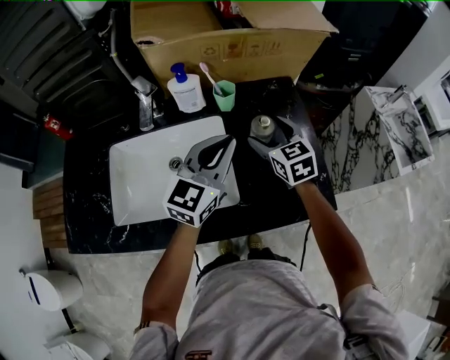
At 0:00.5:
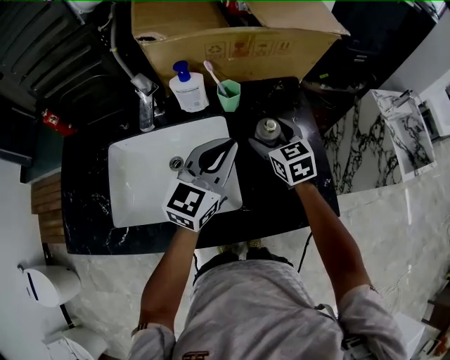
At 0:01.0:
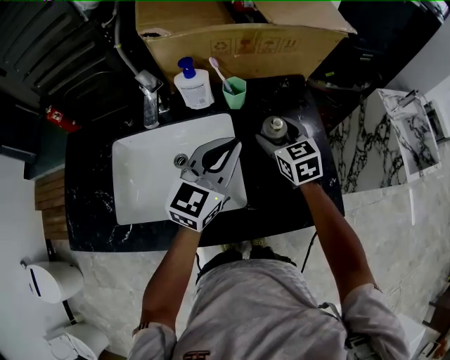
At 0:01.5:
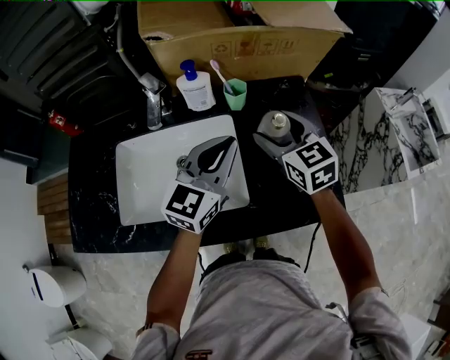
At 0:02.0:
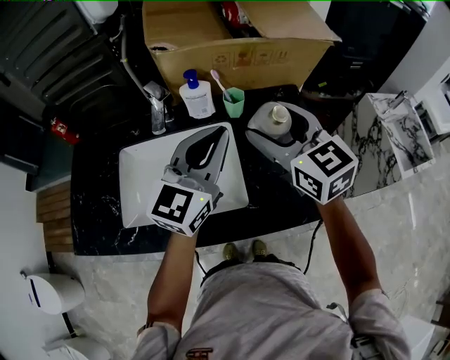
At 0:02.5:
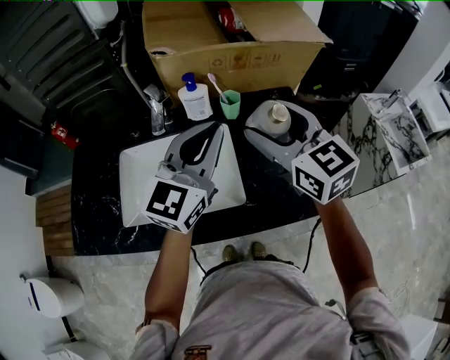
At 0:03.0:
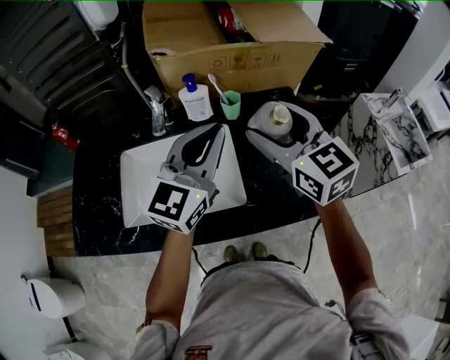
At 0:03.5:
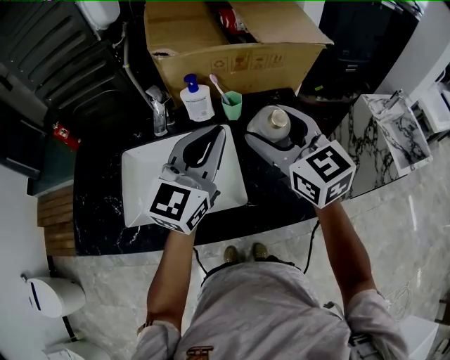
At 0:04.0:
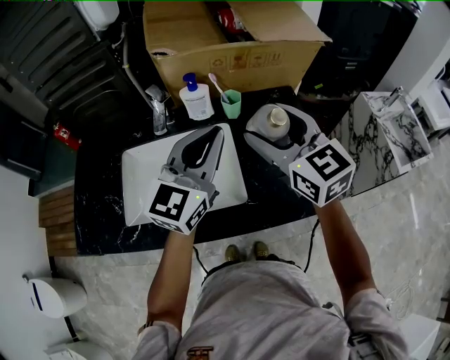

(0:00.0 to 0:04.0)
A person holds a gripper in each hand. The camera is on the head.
0:00.0 - 0:02.0: The left gripper goes roughly 10 cm upward; the right gripper moves upward, roughly 20 cm.
0:02.0 - 0:04.0: There are only small adjustments of the grippers.

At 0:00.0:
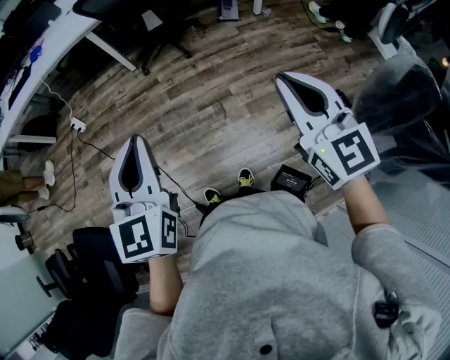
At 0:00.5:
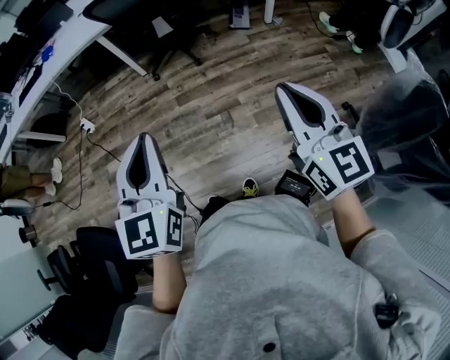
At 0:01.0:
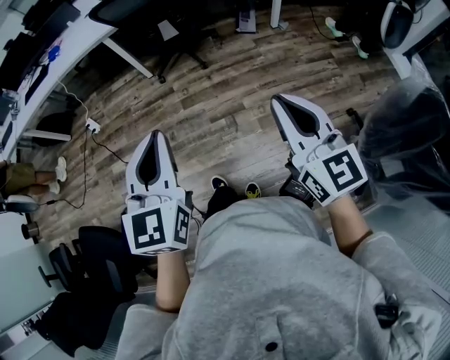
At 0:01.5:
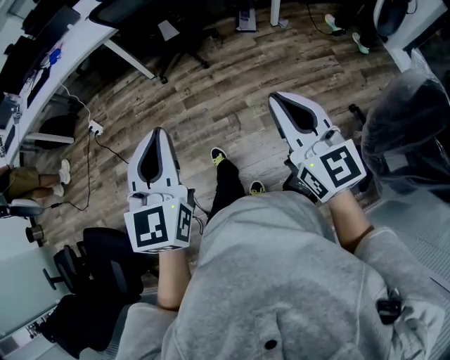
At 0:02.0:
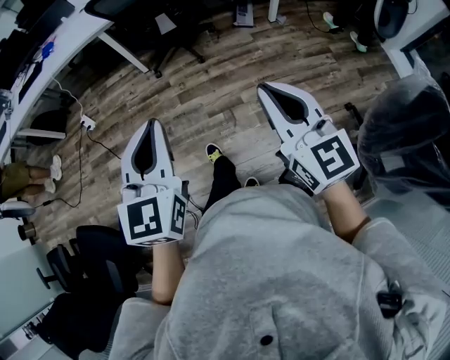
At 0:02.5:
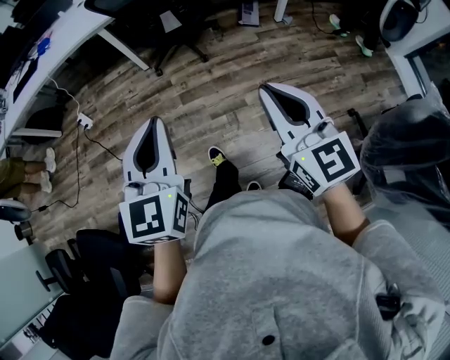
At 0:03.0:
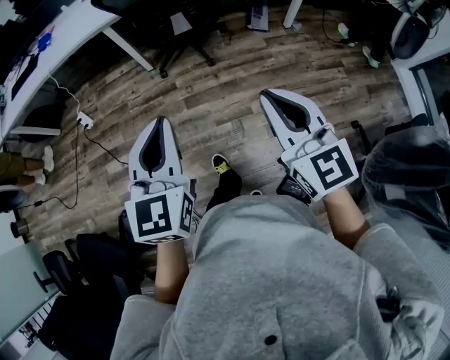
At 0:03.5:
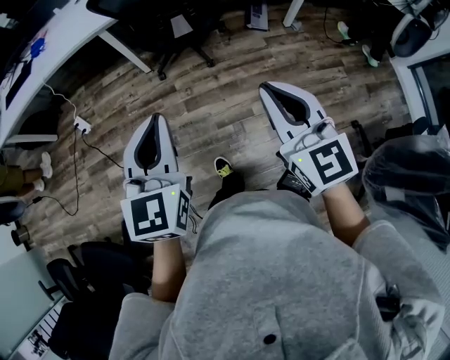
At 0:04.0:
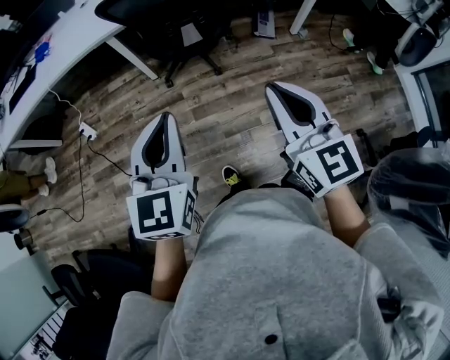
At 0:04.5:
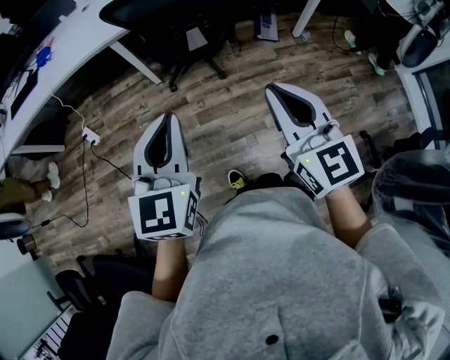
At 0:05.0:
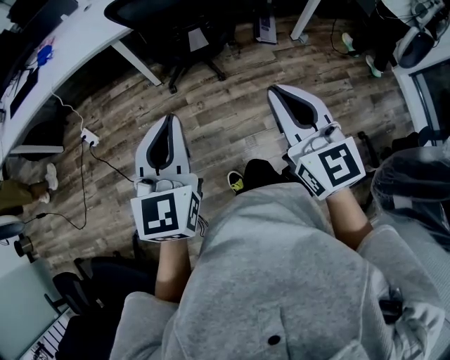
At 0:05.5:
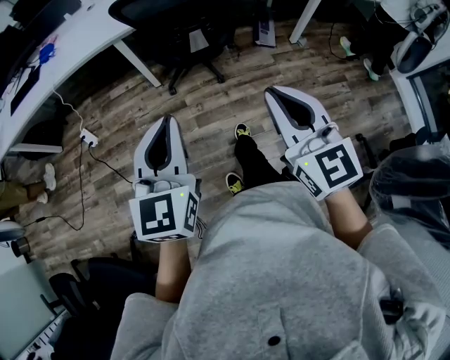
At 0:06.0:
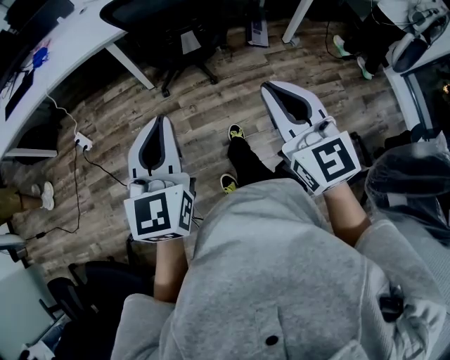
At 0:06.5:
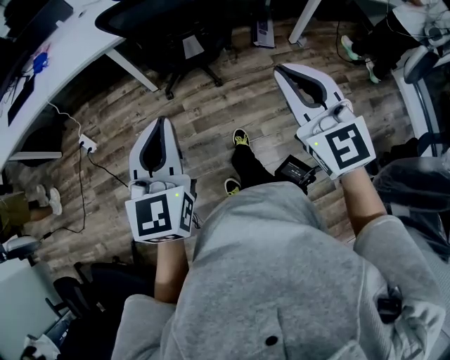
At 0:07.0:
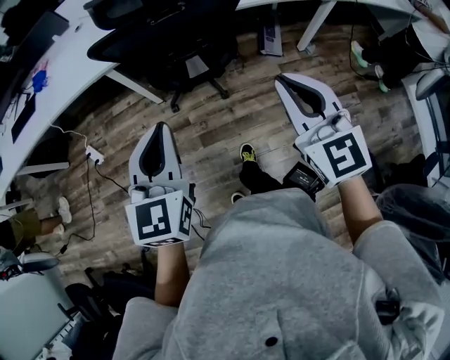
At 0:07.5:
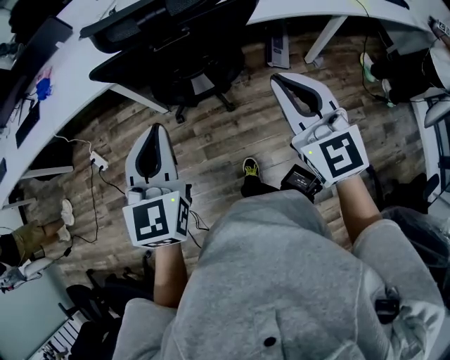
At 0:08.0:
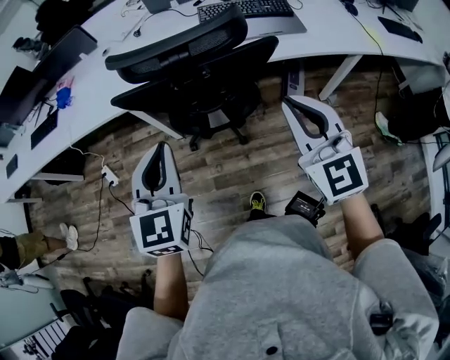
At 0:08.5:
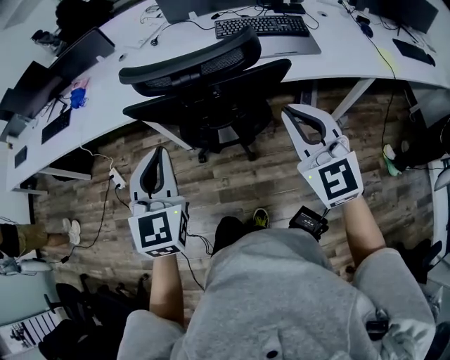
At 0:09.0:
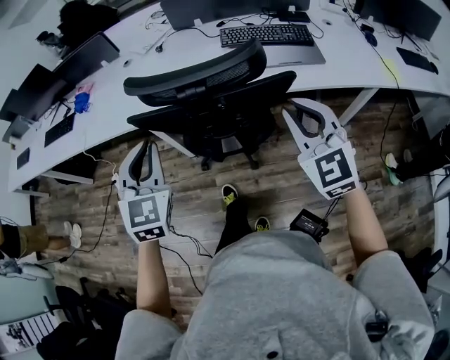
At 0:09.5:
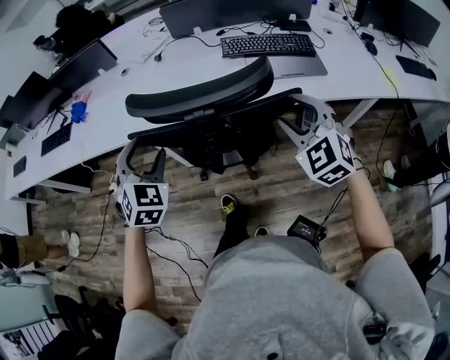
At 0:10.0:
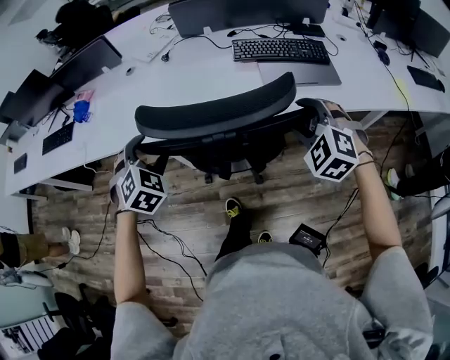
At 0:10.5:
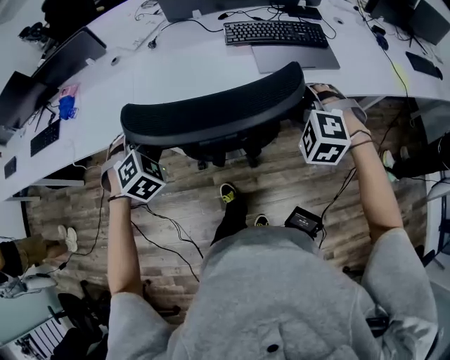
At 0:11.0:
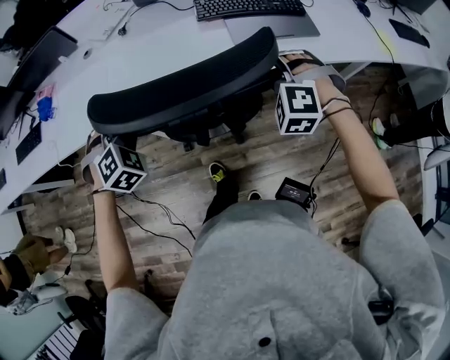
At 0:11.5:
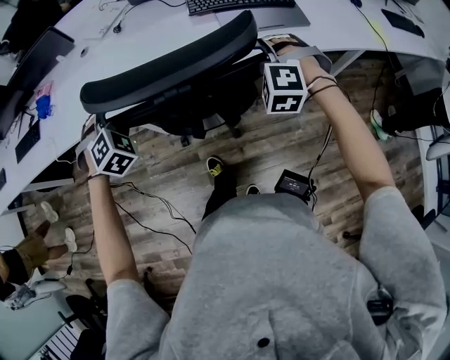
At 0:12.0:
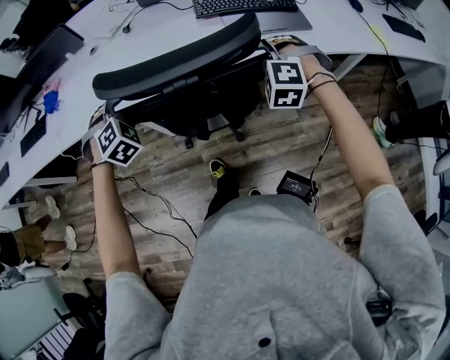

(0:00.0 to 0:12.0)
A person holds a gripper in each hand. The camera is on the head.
0:00.0 - 0:02.0: The right gripper ends up roughly 5 cm from where it was, while the left gripper ends up roughly 5 cm from where it was.
0:02.0 - 0:04.0: Both grippers move forward, some 25 cm.
0:04.0 - 0:06.0: There are only small adjustments of the grippers.
0:06.0 - 0:08.0: The two grippers go approximately 30 cm forward.
0:08.0 - 0:10.0: The grippers both shift forward and downward by some 25 cm. The right gripper tilts its fingers about 30 degrees downward, and opens; the left gripper changes its angle by about 50 degrees, and opens.
0:10.0 - 0:12.0: The right gripper moves about 5 cm, changes its angle by approximately 20 degrees, and closes up, while the left gripper closes up.

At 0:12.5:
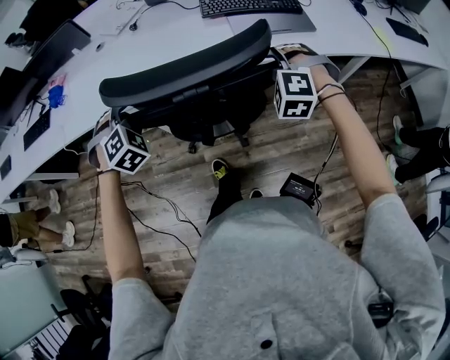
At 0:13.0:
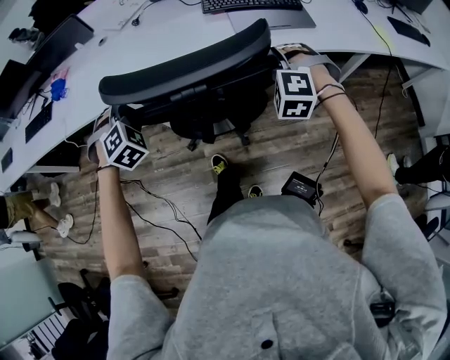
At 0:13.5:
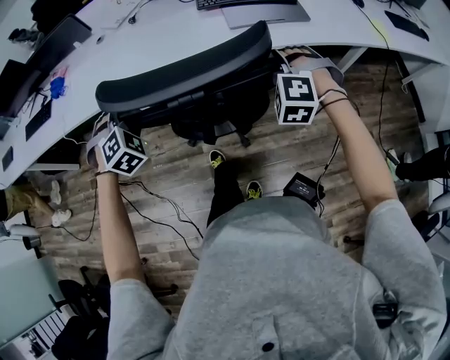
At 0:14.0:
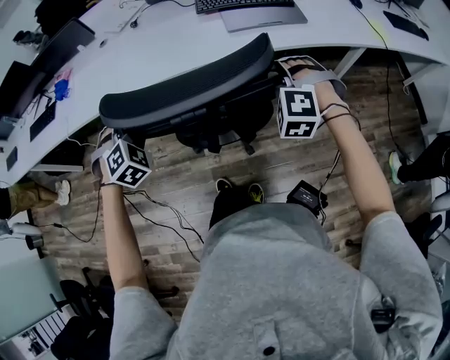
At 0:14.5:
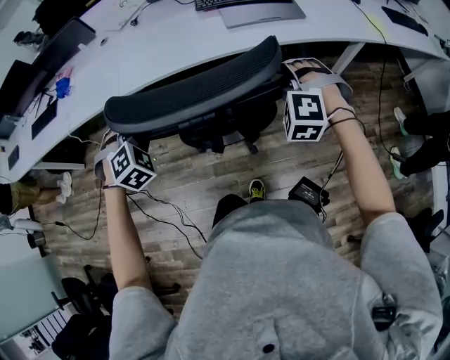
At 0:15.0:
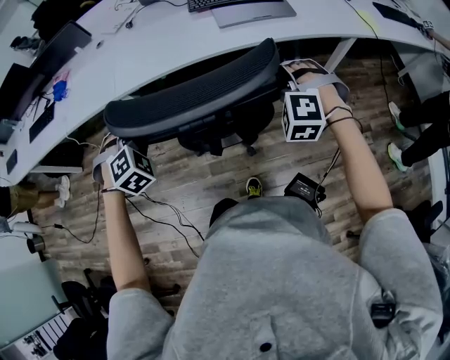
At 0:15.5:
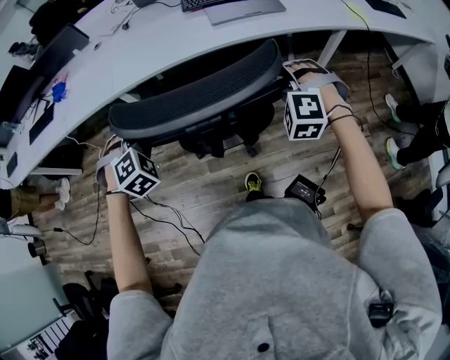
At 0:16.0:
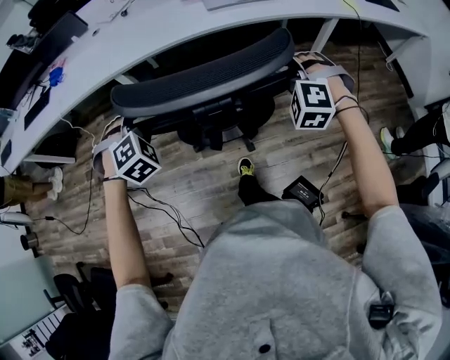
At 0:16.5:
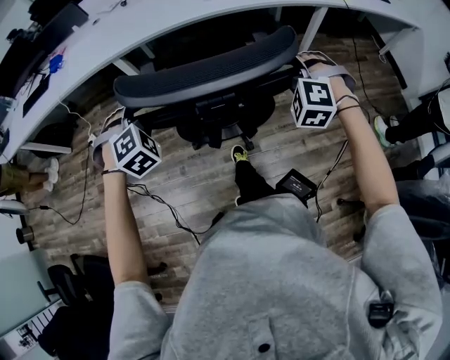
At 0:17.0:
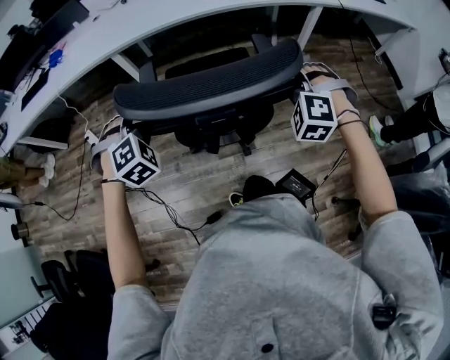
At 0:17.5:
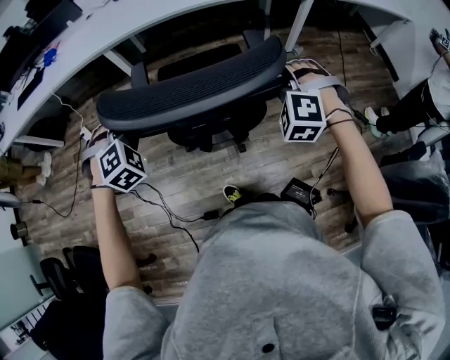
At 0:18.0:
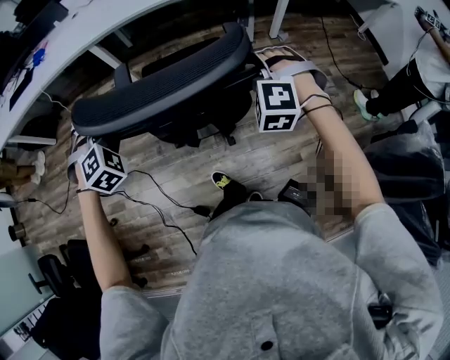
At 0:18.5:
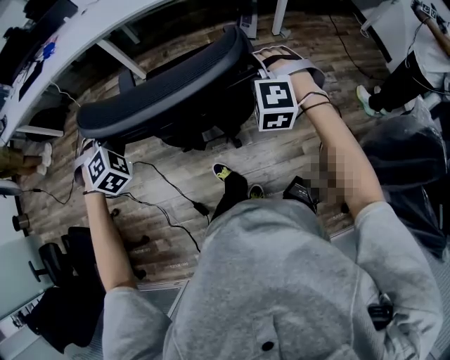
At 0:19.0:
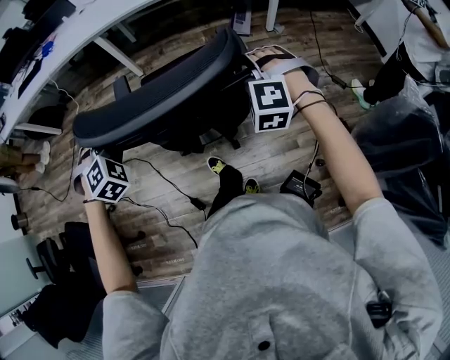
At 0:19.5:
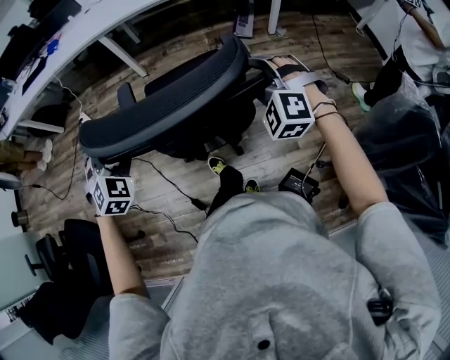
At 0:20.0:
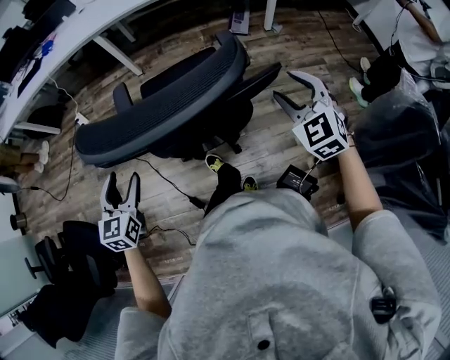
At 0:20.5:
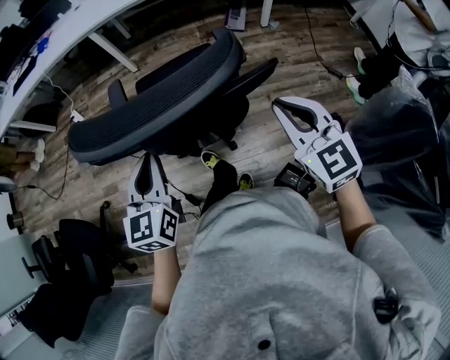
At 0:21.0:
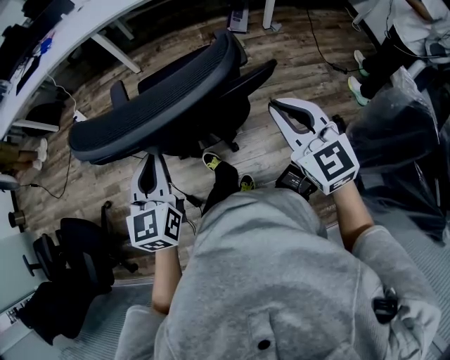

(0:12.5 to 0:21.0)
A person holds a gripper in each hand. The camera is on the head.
0:12.5 - 0:14.5: The two grippers go some 10 cm backward.
0:14.5 - 0:16.5: Both grippers travel together backward, some 25 cm.
0:16.5 - 0:19.0: Both grippers move backward, approximately 30 cm.
0:19.0 - 0:21.0: The left gripper shifts some 20 cm backward and to the right, rolls counterclockwise, seen from behind, by some 70 degrees, and closes. The right gripper moves backward and upward, some 15 cm, rolls clockwise, seen from behind, by some 60 degrees, and closes.

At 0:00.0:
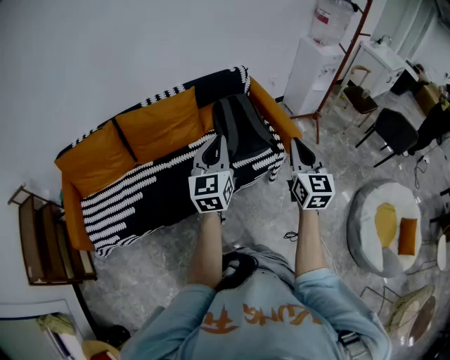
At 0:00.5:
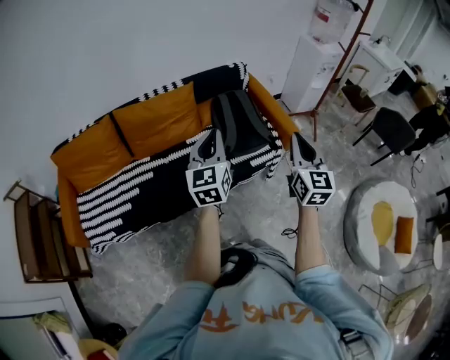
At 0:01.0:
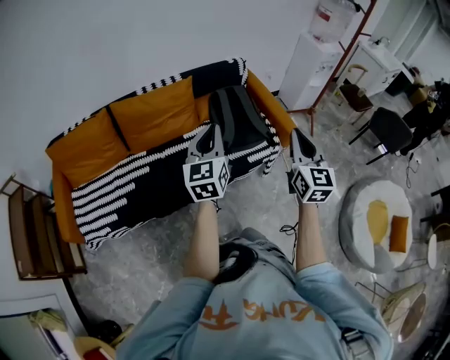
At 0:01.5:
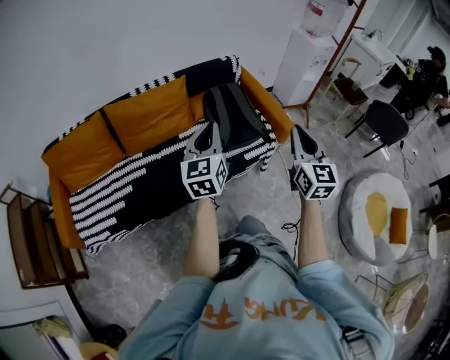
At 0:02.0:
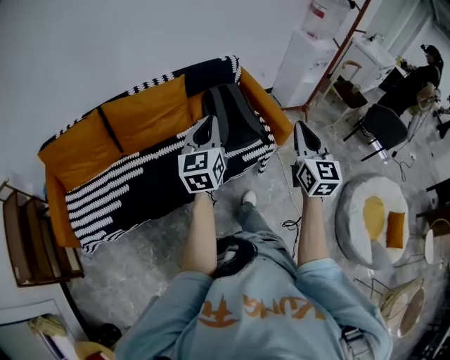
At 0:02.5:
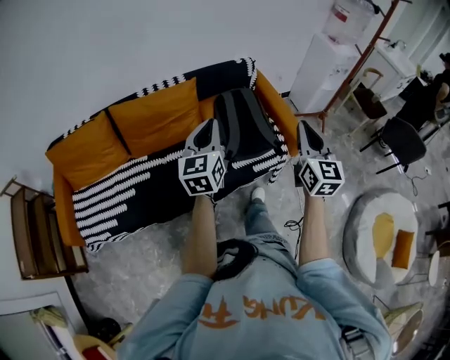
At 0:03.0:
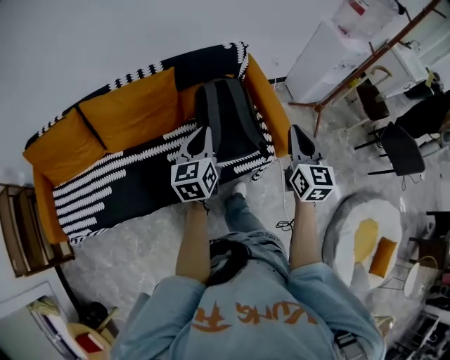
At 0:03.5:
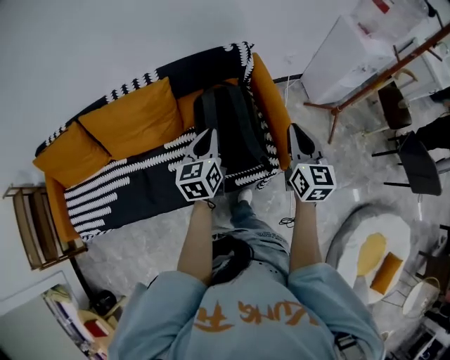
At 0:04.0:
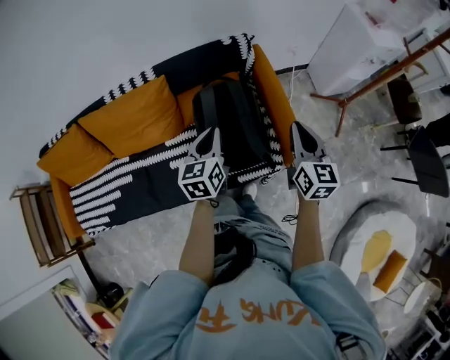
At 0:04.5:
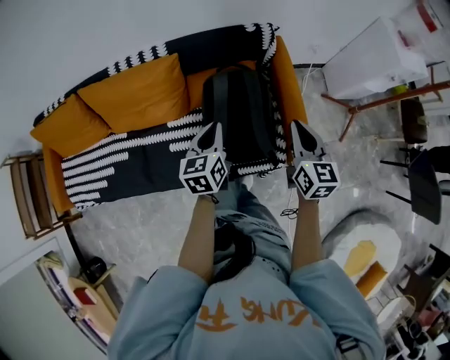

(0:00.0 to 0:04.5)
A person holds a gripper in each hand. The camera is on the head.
0:00.0 - 0:02.0: There are only small adjustments of the grippers.
0:02.0 - 0:04.5: The right gripper shifts about 50 cm forward and downward, and swivels roughly 30 degrees; the left gripper is displaced forward, downward and to the right by about 50 cm, and swivels some 30 degrees.
